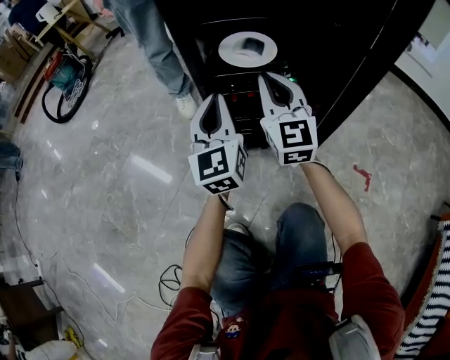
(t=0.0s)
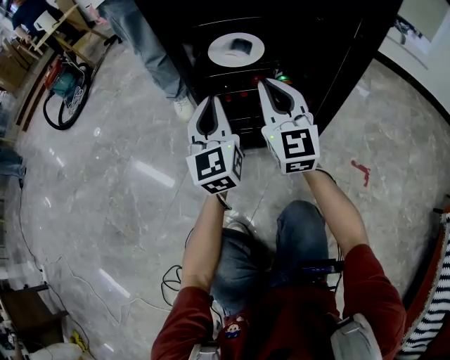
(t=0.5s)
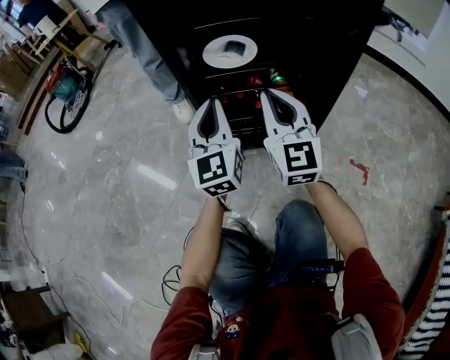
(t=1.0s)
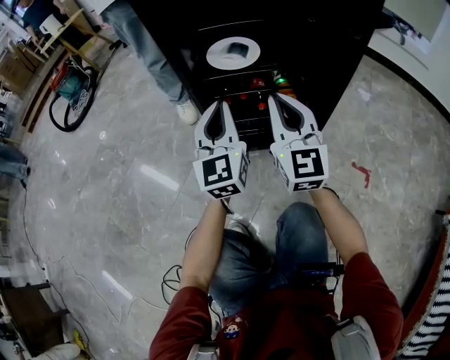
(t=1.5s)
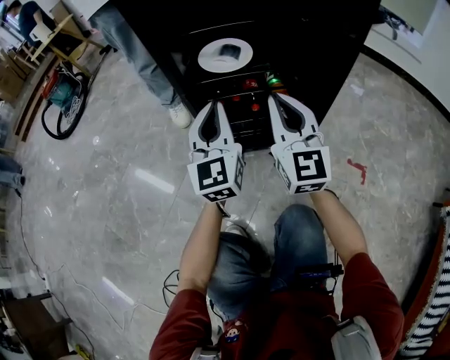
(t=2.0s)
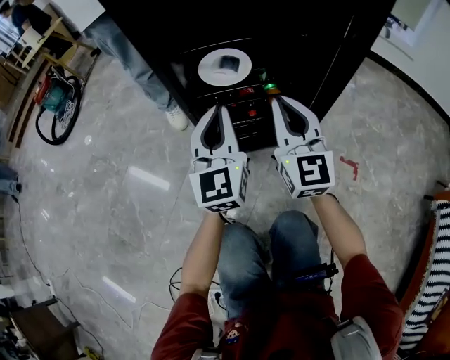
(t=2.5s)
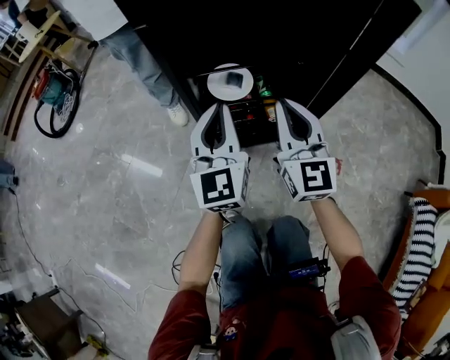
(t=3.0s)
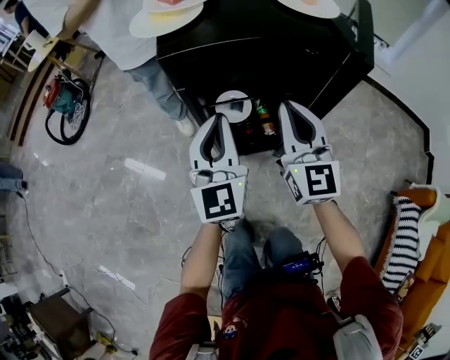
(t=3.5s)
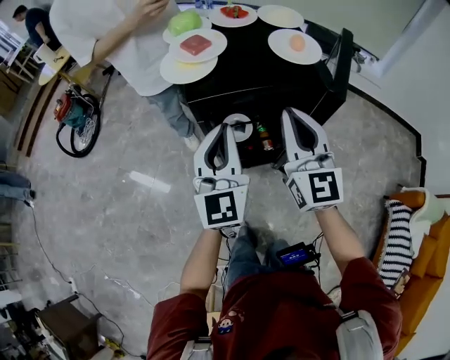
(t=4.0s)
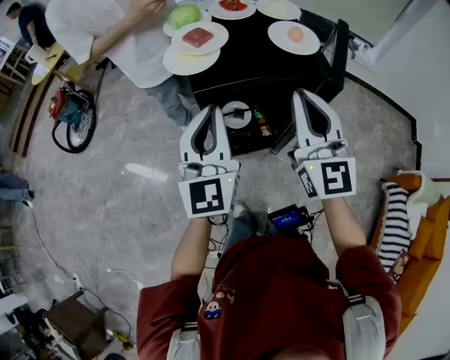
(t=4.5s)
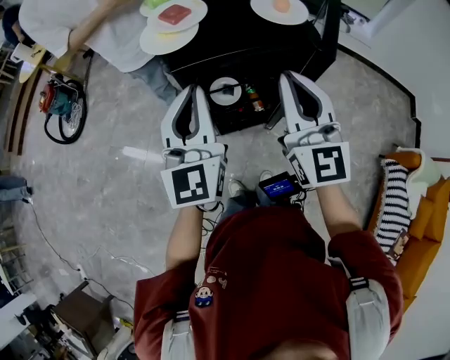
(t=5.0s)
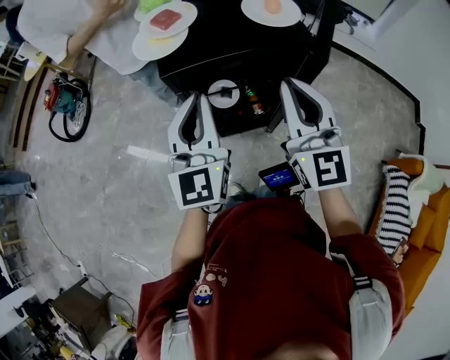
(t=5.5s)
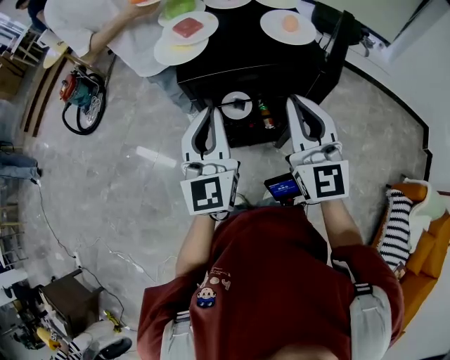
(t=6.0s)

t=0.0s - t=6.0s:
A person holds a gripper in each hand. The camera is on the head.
t=0.0s - t=2.0s: The right gripper goes approximately 10 cm backward and to the right, while the left gripper shifts by roughly 5 cm.
t=2.0s - t=4.0s: Both grippers move upward, some 50 cm.
t=4.0s - t=6.0s: The right gripper shifts by roughly 5 cm.

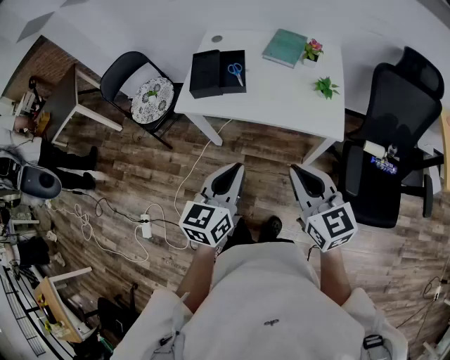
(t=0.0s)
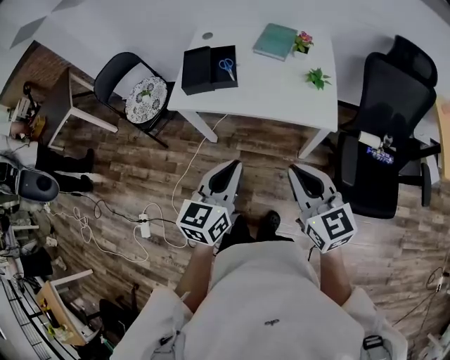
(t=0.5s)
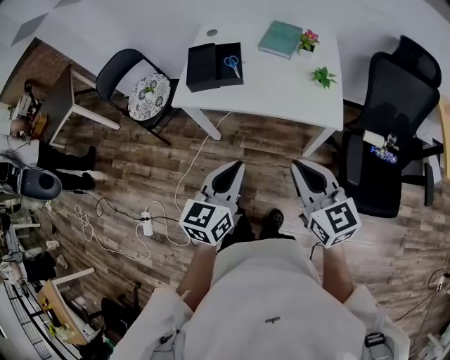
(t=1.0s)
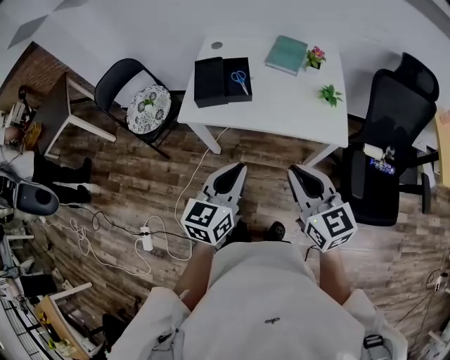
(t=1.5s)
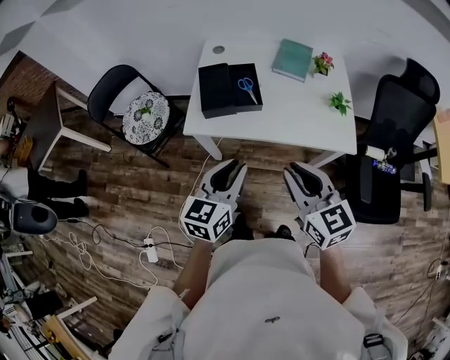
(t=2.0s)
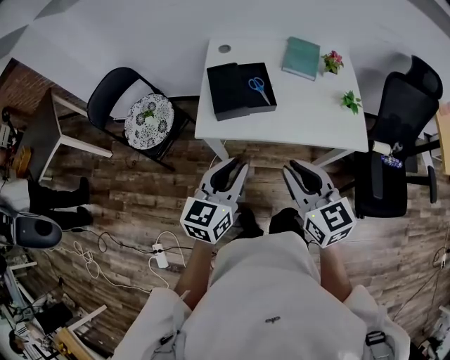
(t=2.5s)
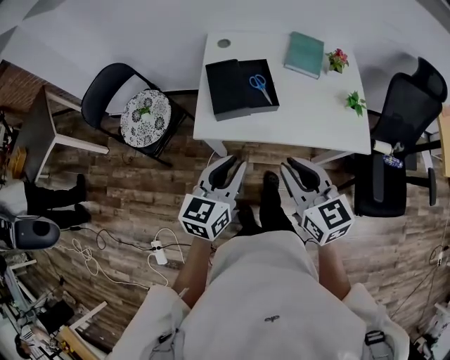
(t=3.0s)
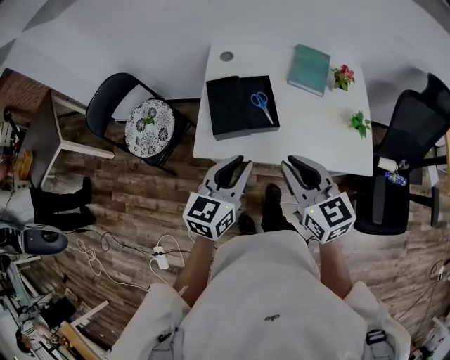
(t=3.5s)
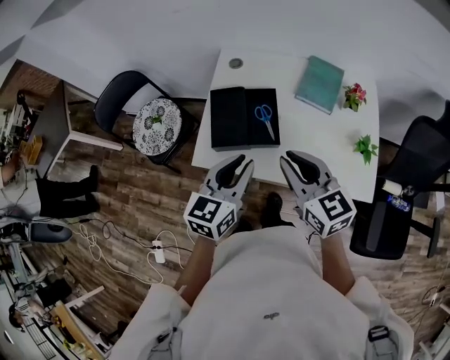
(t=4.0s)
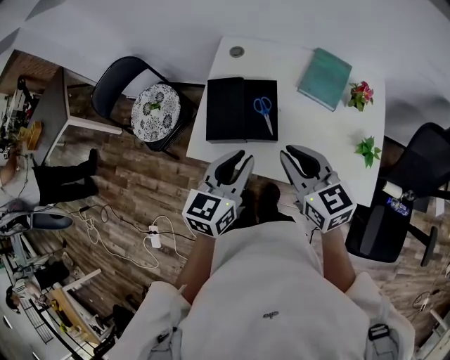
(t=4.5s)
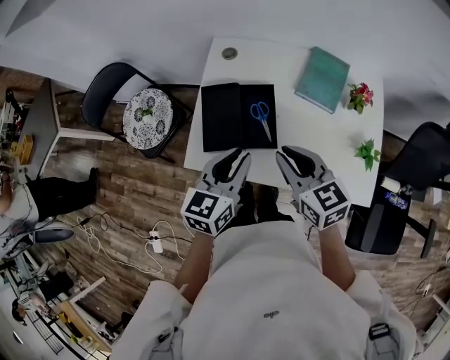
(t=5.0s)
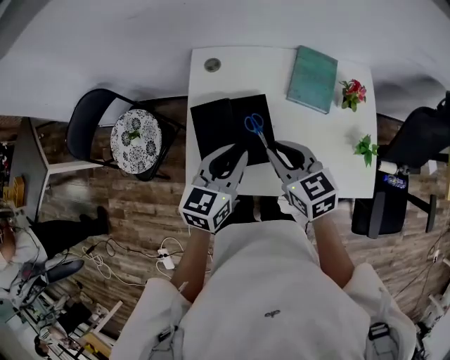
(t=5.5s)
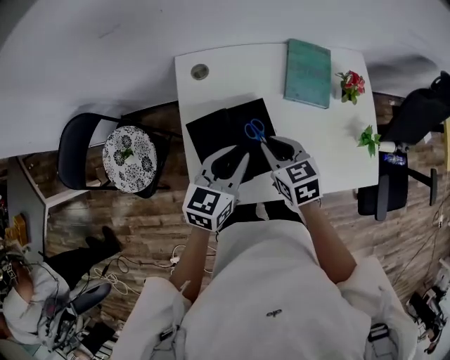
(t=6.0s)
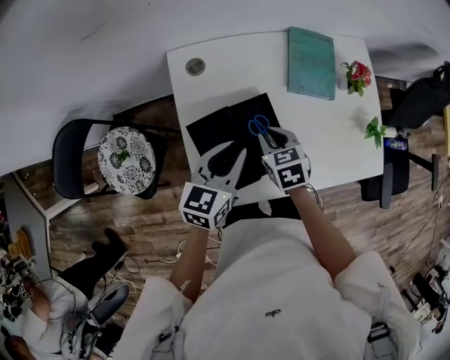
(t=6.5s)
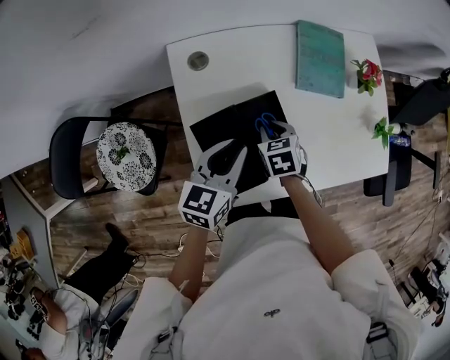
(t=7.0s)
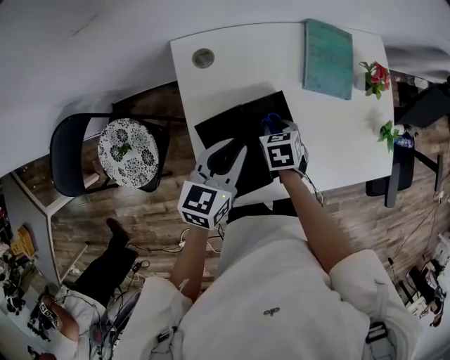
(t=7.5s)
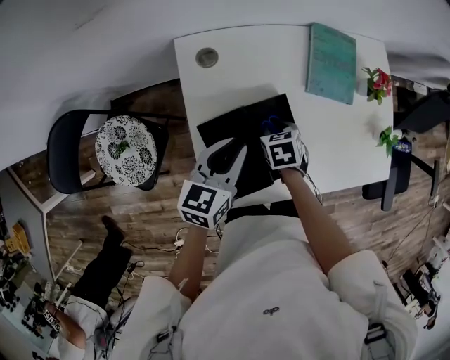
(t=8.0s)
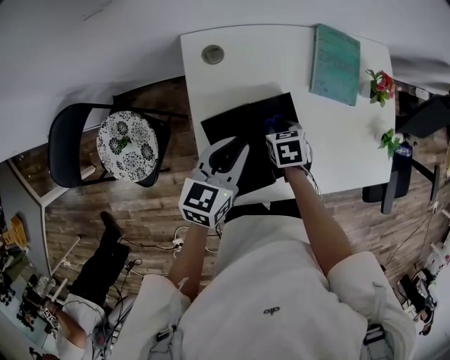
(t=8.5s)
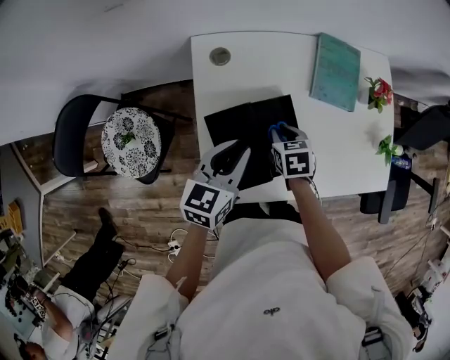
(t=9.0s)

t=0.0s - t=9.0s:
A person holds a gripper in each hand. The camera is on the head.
t=0.0s - t=2.0s: The two grippers go about 15 cm to the left and forward.
t=2.0s - t=4.5s: Both grippers travel together forward, approximately 25 cm.
t=4.5s - t=7.0s: The right gripper travels downward by approximately 25 cm, and angles its fingers downward, by about 40 degrees; the left gripper moves roughly 25 cm, and rotates approximately 30 degrees.
t=7.0s - t=9.0s: The grippers move only a little.

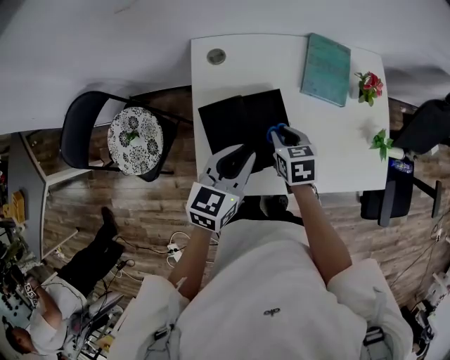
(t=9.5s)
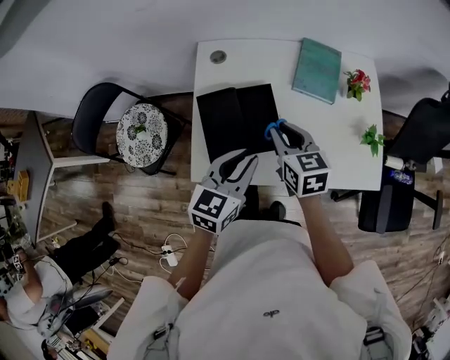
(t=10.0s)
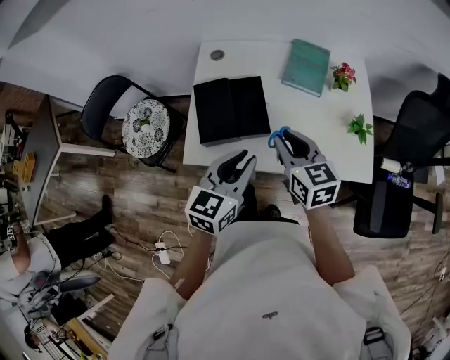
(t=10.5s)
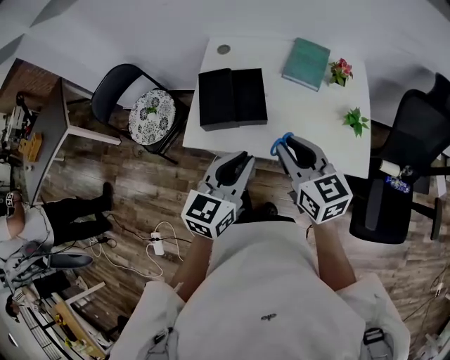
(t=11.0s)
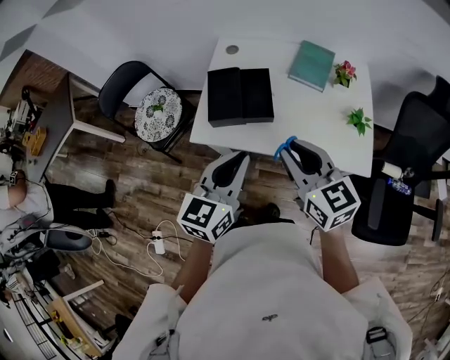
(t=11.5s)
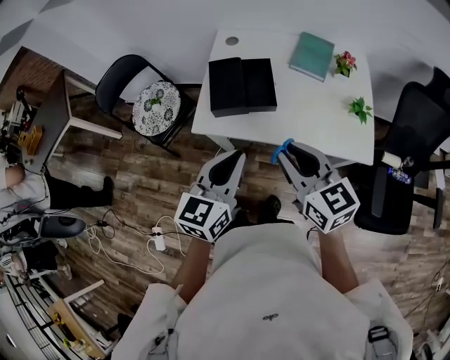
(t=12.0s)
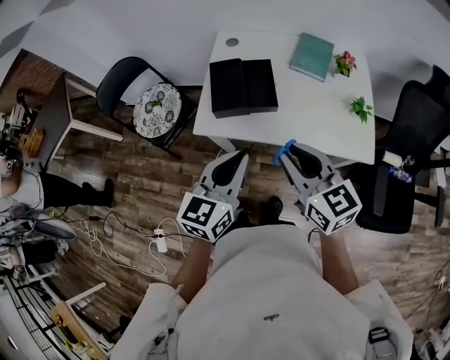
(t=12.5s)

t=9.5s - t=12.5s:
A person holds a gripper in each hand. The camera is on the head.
t=9.5s - t=11.0s: The right gripper shifts roughly 35 cm backward, upward and to the right, and tilts its fingers about 40 degrees upward; the left gripper moves backward, to the right and upward, approximately 30 cm.
t=11.0s - t=12.5s: The right gripper travels backward by some 10 cm. Meanwhile the left gripper travels to the left and backward by about 10 cm.

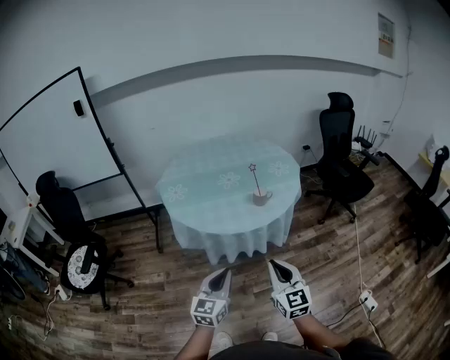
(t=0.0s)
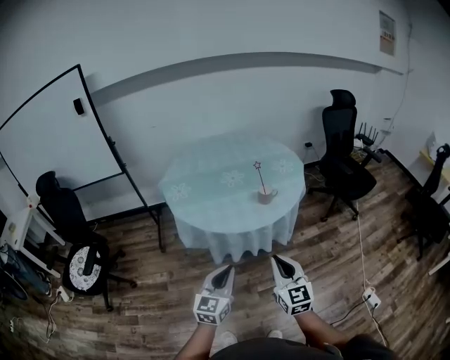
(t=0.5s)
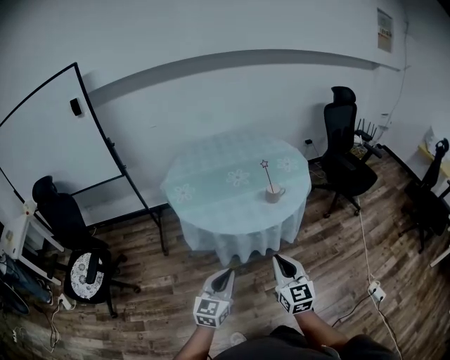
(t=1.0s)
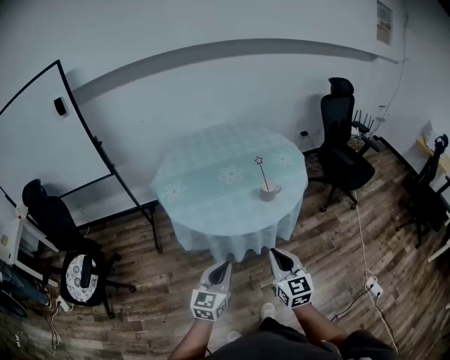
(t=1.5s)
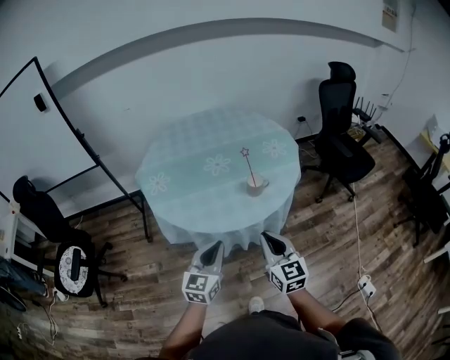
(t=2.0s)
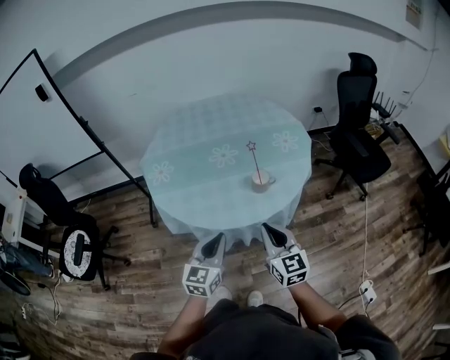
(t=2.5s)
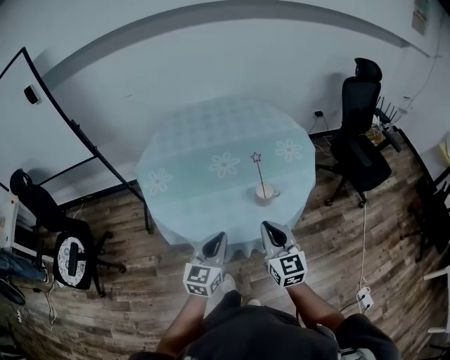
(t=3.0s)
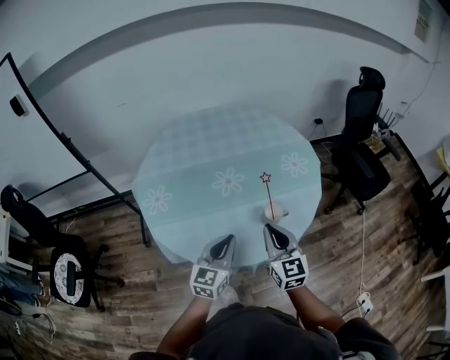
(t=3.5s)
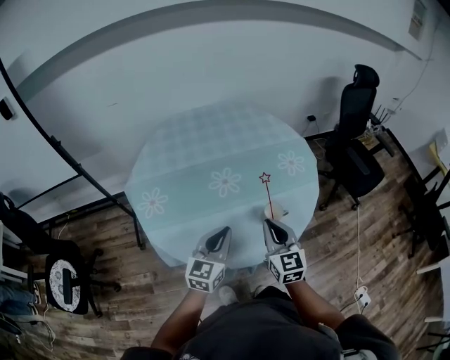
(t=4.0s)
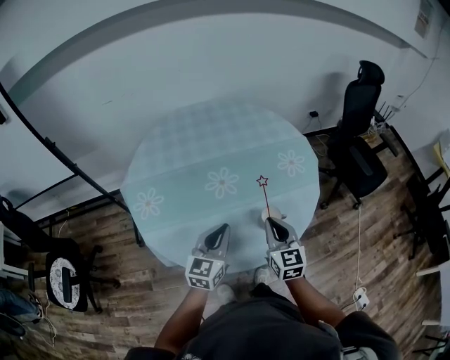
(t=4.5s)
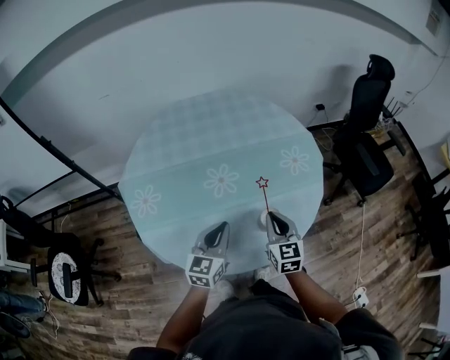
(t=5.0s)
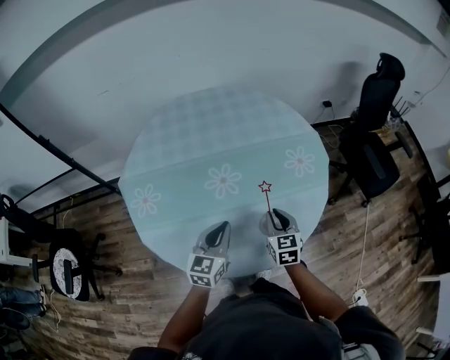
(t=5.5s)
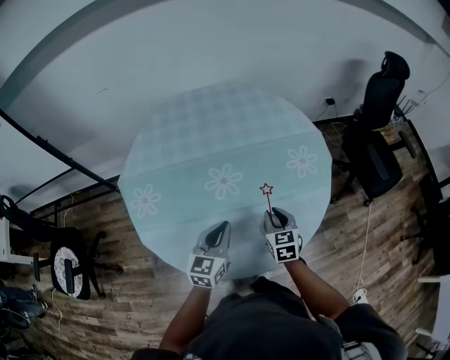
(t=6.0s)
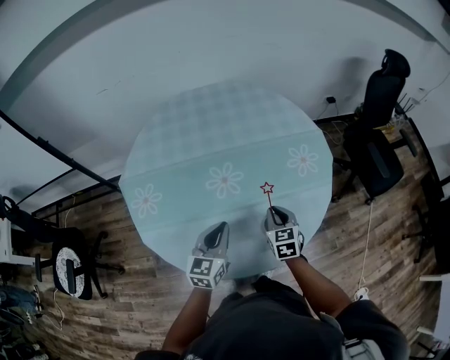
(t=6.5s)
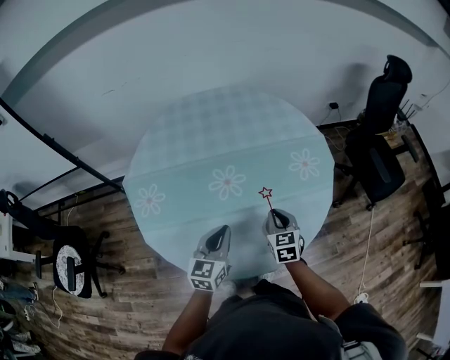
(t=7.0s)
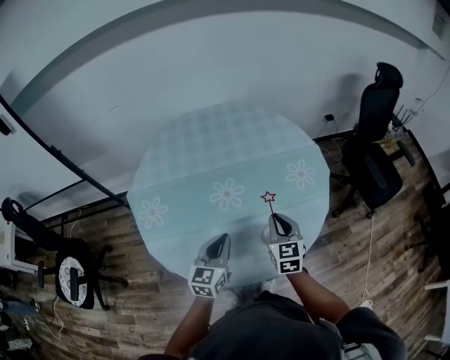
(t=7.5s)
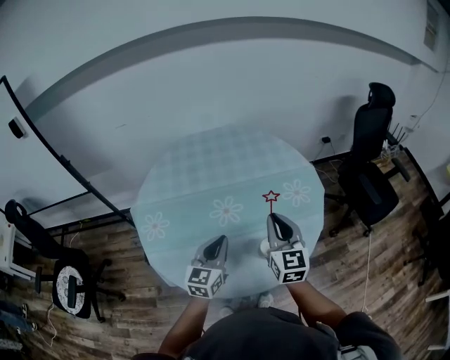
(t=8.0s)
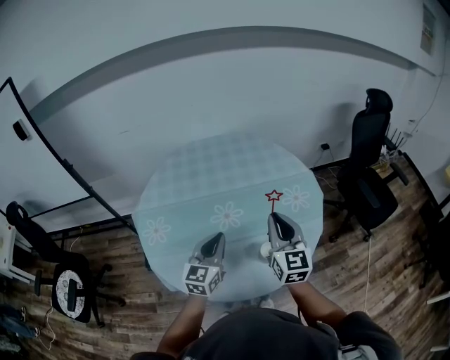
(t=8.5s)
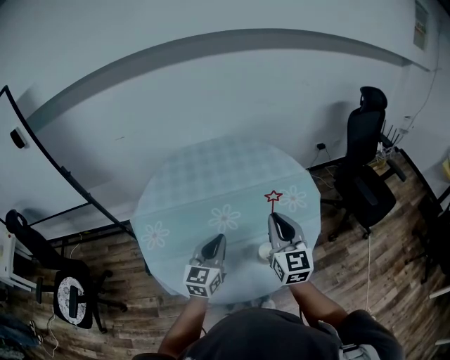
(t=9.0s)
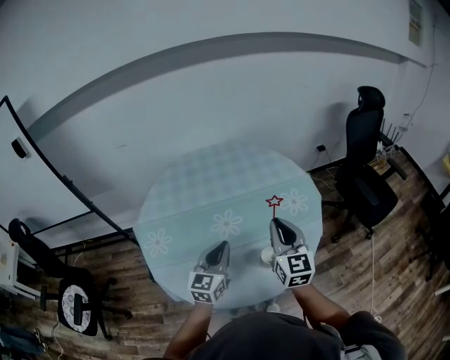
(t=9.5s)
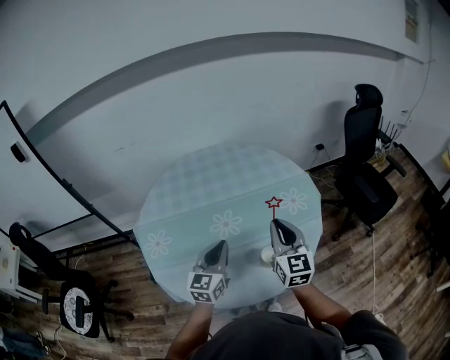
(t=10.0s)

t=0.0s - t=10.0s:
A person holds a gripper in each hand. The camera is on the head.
t=0.0s - t=2.0s: Both grippers move forward, roughly 20 cm.
t=2.0s - t=4.0s: Both grippers move forward, approximately 25 cm.
t=4.0s - t=6.0s: The left gripper goes some 10 cm forward and downward. Meanwhile the right gripper heads forward and downward, covering approximately 20 cm, and turns by about 20 degrees.
t=6.0s - t=8.0s: The left gripper goes roughly 5 cm upward; the right gripper heads upward, covering about 20 cm, and swivels roughly 30 degrees.
t=8.0s - t=10.0s: The grippers move only a little.
